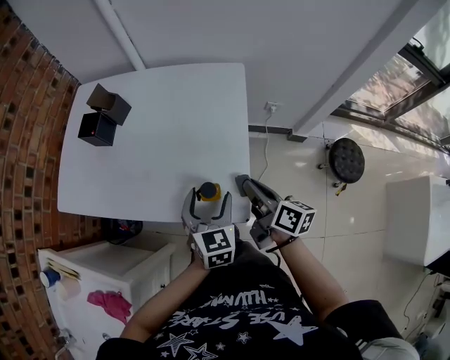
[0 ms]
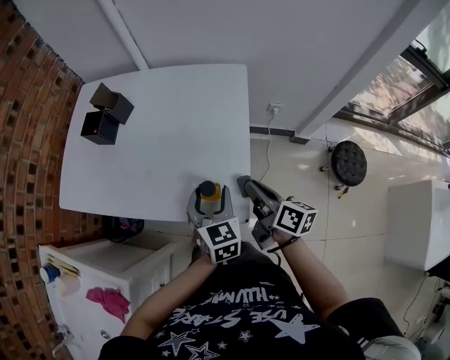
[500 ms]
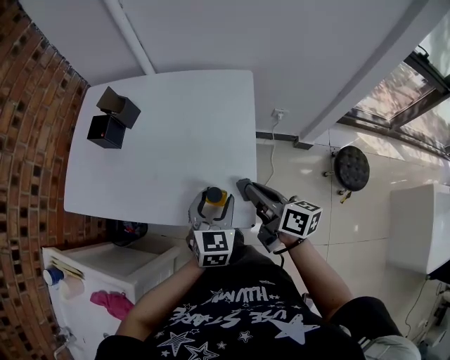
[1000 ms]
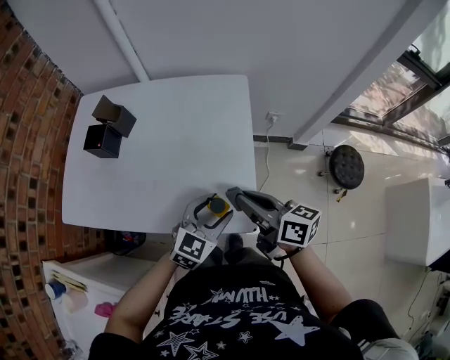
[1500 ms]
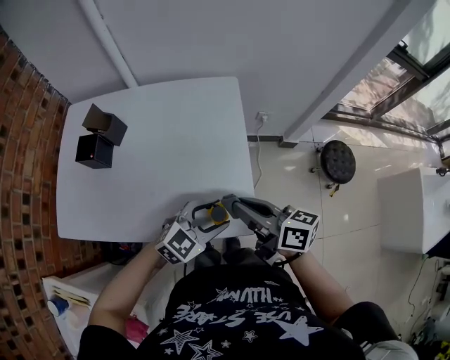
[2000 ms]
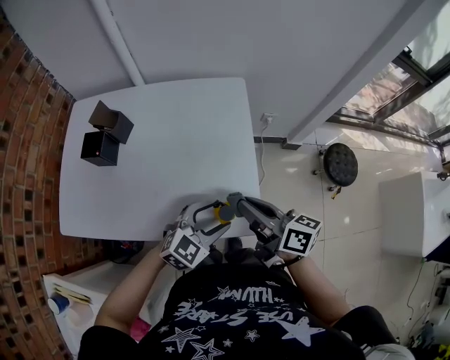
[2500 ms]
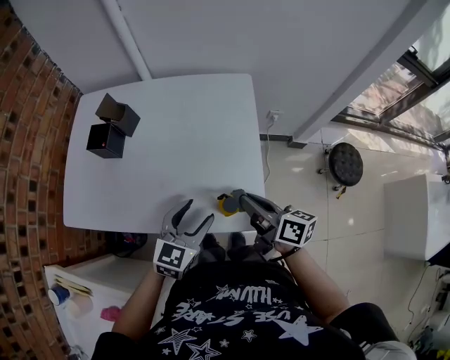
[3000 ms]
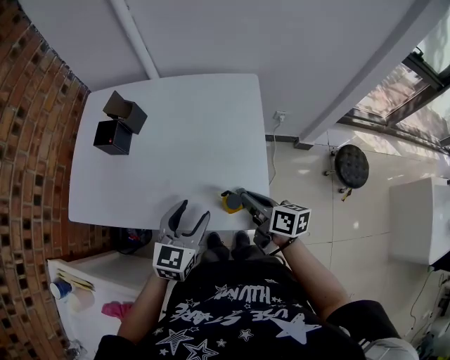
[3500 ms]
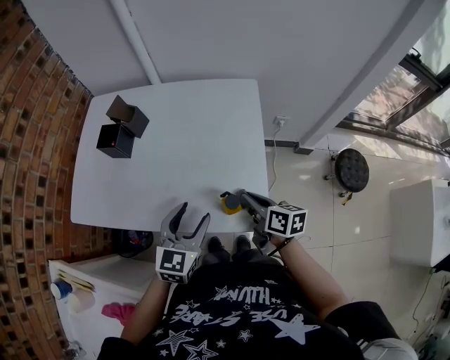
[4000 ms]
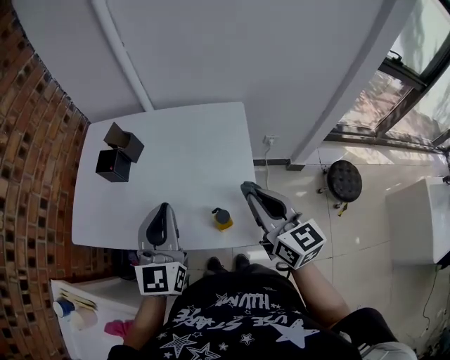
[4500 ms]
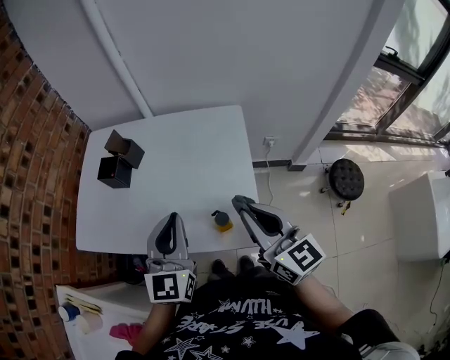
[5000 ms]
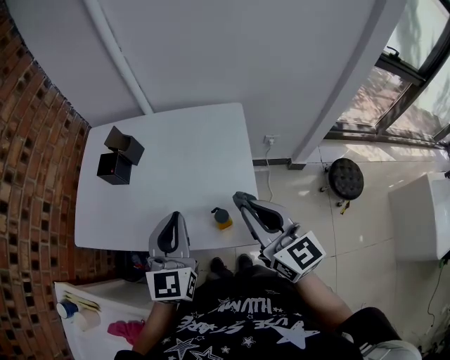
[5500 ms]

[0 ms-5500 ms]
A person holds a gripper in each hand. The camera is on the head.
0 ms to 2000 ms: The right gripper moves upward, about 5 cm. The left gripper changes its angle by approximately 60 degrees.
2000 ms to 3500 ms: The left gripper moves to the left, approximately 10 cm, and changes its angle by roughly 40 degrees, while the right gripper heads downward, covering about 10 cm.
3500 ms to 5500 ms: The grippers both shift upward by about 15 cm. The left gripper turns by some 20 degrees, and closes. Meanwhile the right gripper rolls counterclockwise, seen from behind, by approximately 40 degrees.

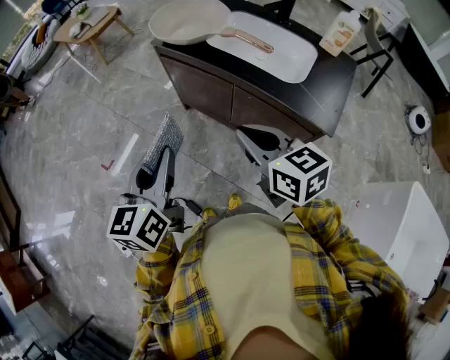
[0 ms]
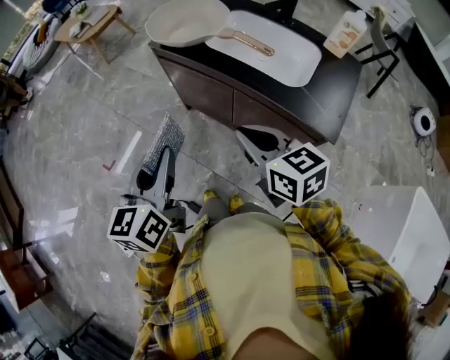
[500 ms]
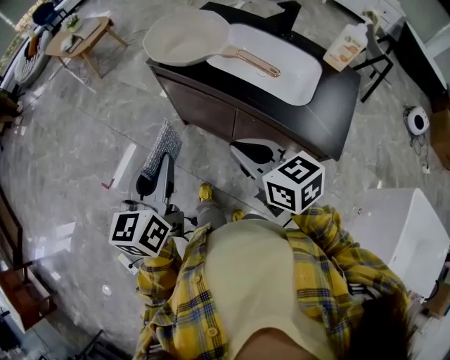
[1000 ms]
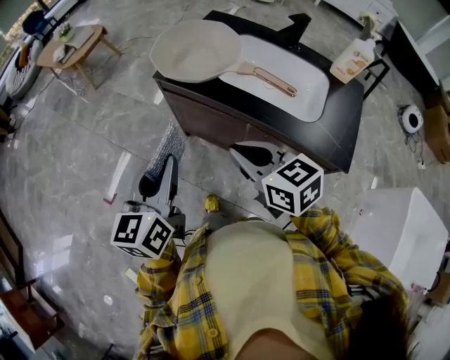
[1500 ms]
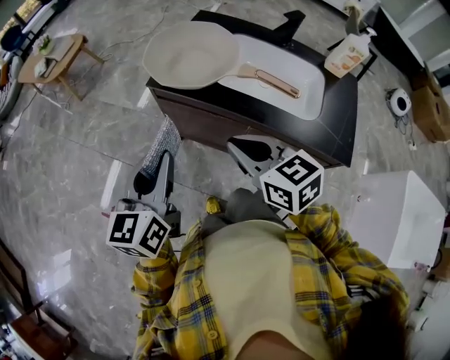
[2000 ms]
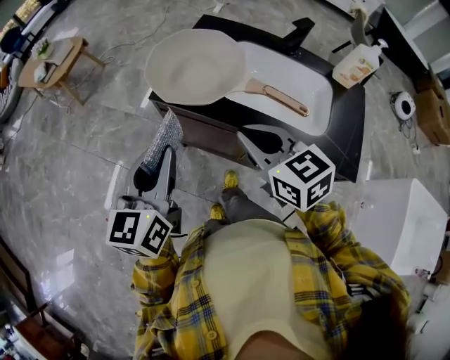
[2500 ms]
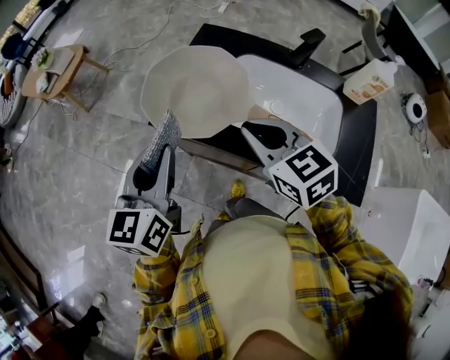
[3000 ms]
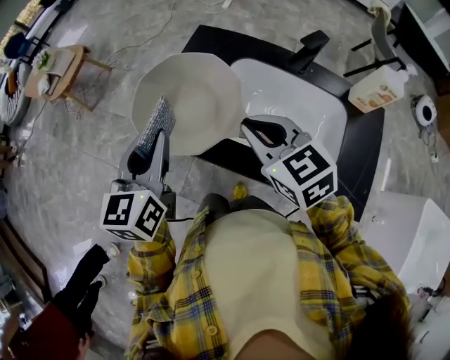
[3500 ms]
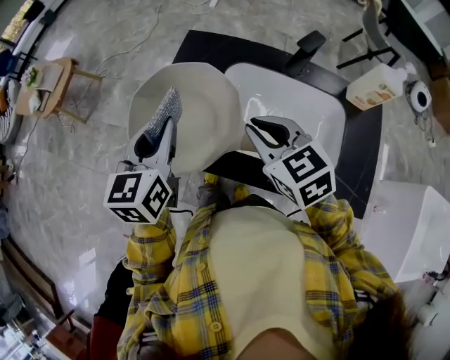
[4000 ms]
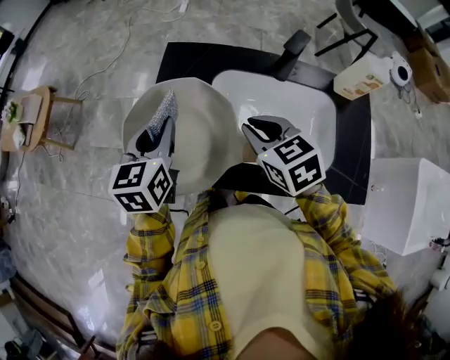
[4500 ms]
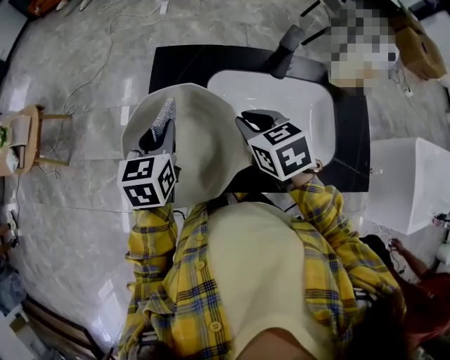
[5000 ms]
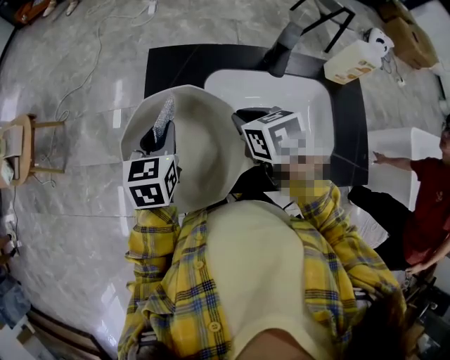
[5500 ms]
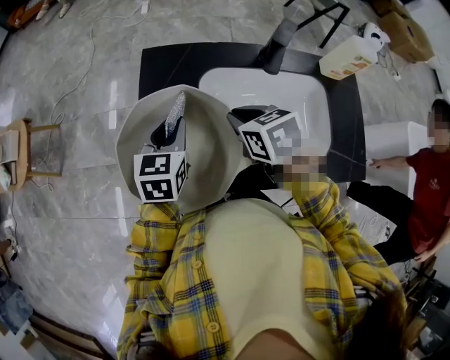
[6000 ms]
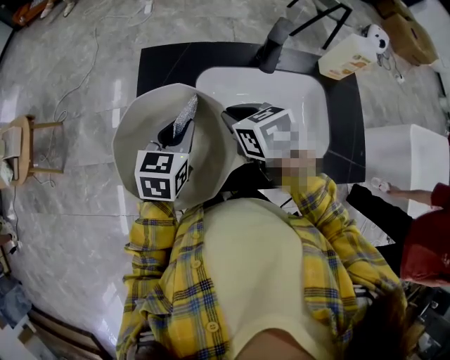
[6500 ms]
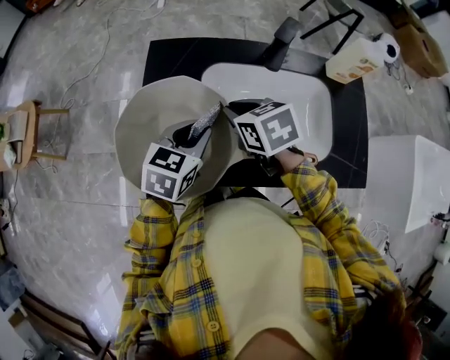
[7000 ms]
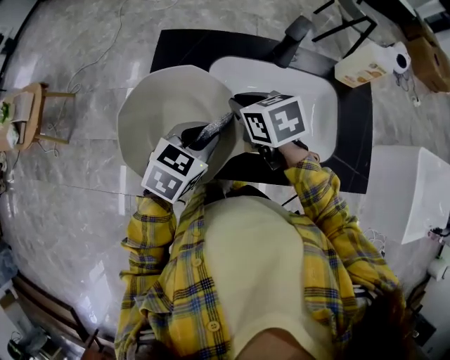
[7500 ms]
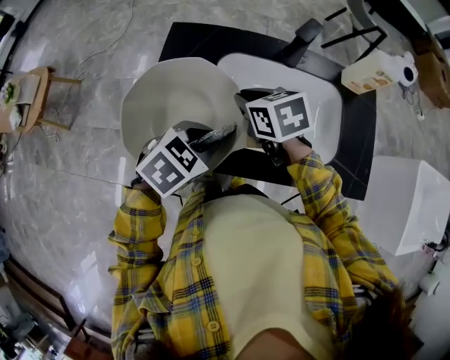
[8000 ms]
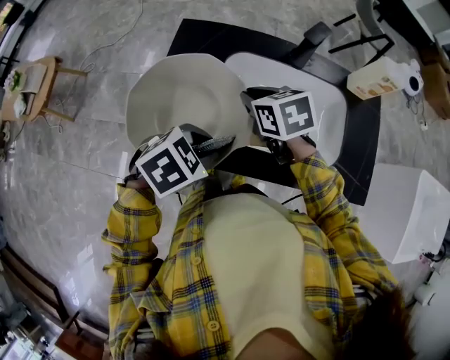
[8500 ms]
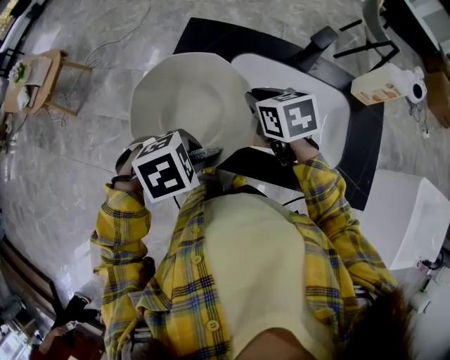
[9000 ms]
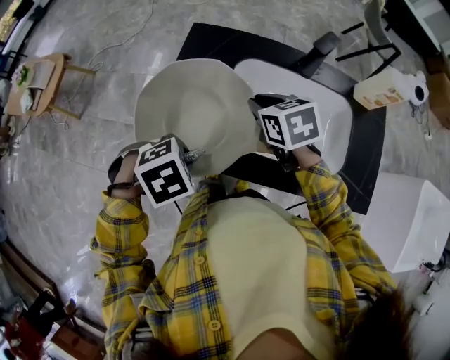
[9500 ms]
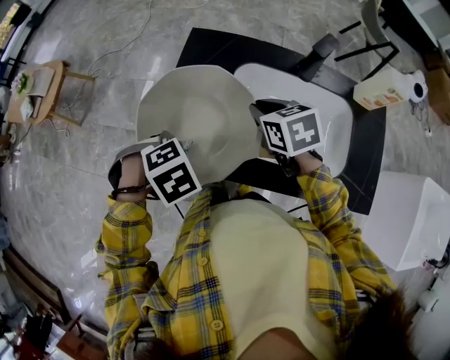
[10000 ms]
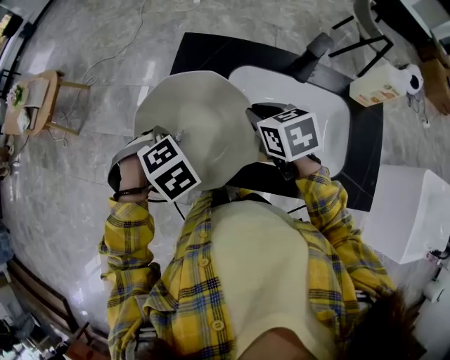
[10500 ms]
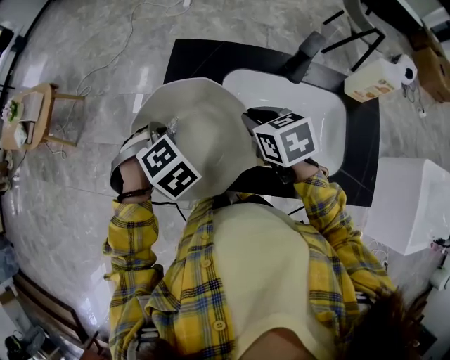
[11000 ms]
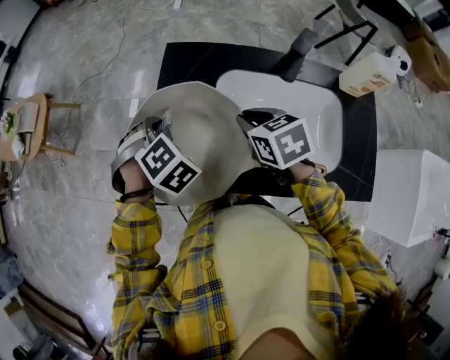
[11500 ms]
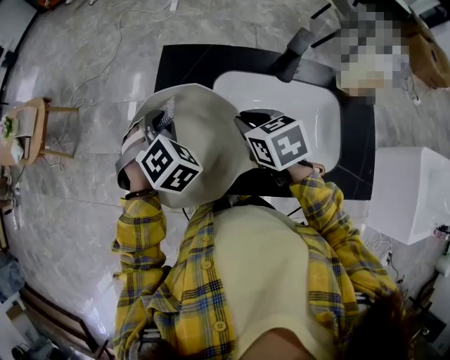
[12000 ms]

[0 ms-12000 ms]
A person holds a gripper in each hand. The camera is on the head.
0 ms to 2000 ms: The grippers both shift forward by approximately 20 cm.
2000 ms to 4000 ms: The left gripper goes approximately 30 cm forward, while the right gripper shifts some 25 cm forward and to the right.
4000 ms to 6000 ms: The left gripper travels downward and forward by about 15 cm, and swivels approximately 30 degrees, while the right gripper goes approximately 10 cm forward and downward, and rotates about 30 degrees.
6000 ms to 8000 ms: The left gripper travels backward and to the right by roughly 15 cm, and swivels some 40 degrees.
8000 ms to 10000 ms: The left gripper shifts by roughly 10 cm, and tips its fingers downward by about 30 degrees.
10000 ms to 12000 ms: The left gripper moves roughly 15 cm, and points its fingers some 30 degrees further upward.

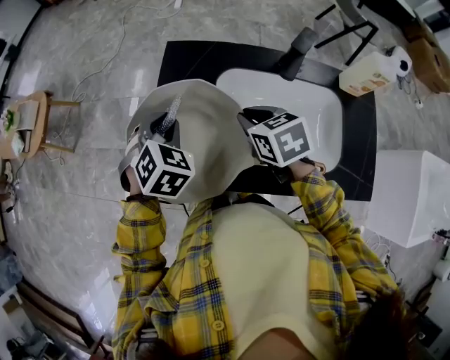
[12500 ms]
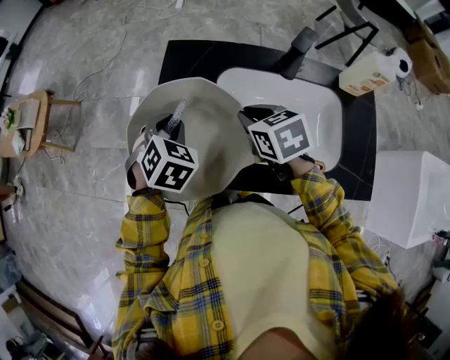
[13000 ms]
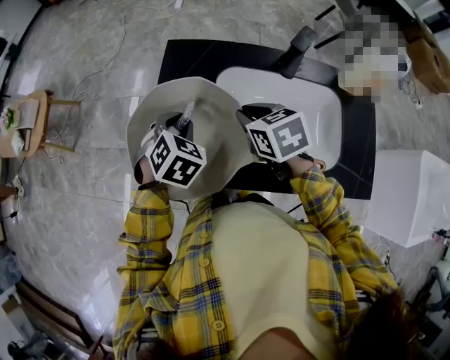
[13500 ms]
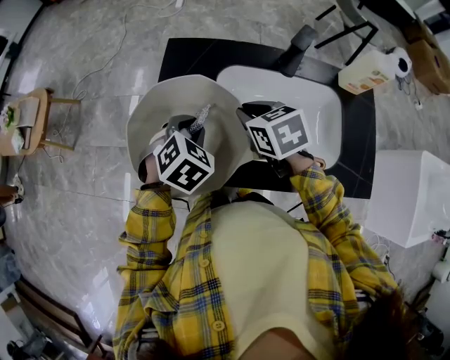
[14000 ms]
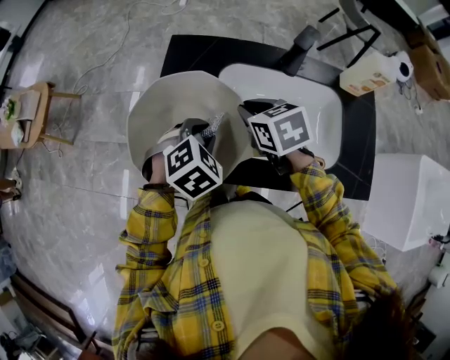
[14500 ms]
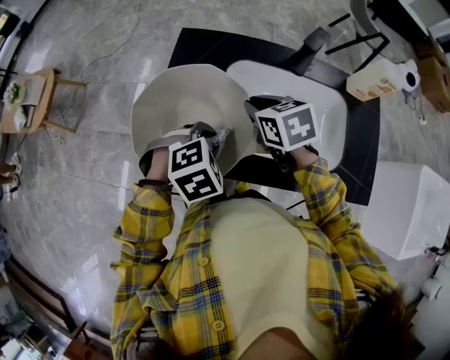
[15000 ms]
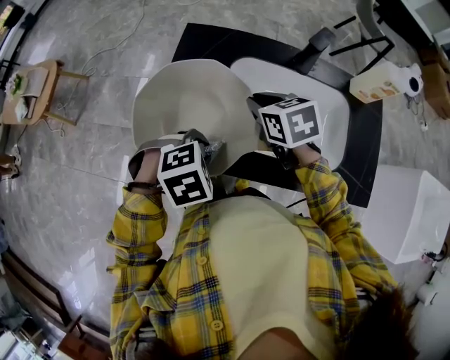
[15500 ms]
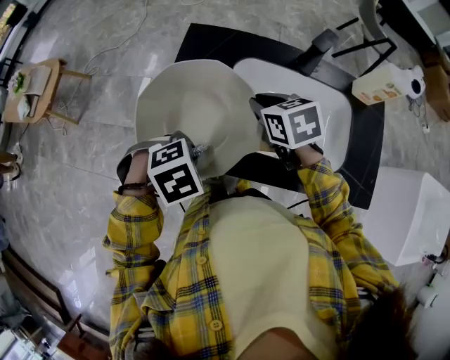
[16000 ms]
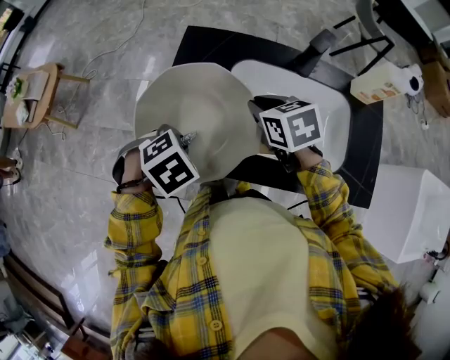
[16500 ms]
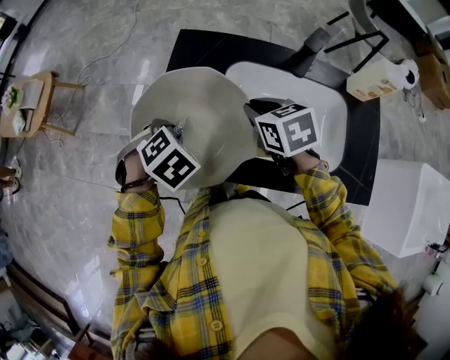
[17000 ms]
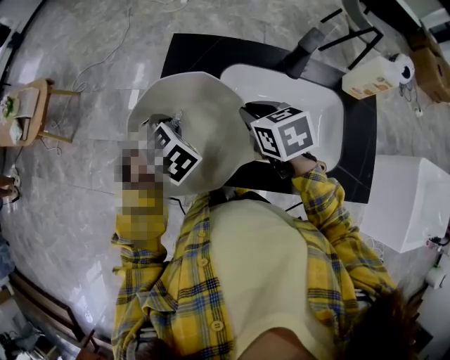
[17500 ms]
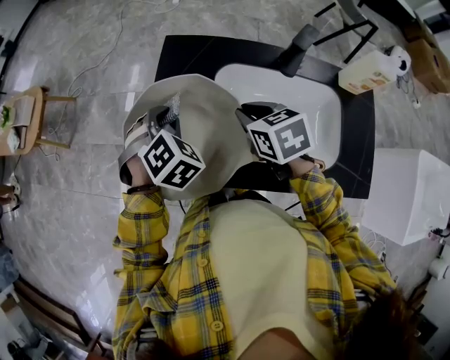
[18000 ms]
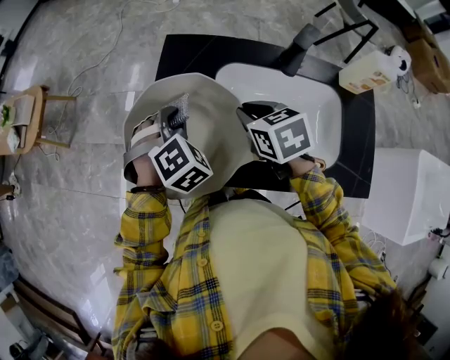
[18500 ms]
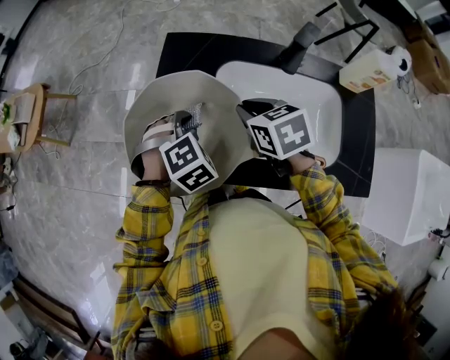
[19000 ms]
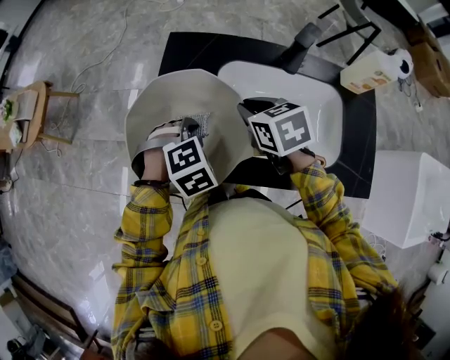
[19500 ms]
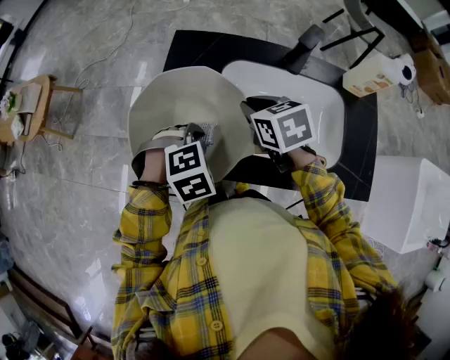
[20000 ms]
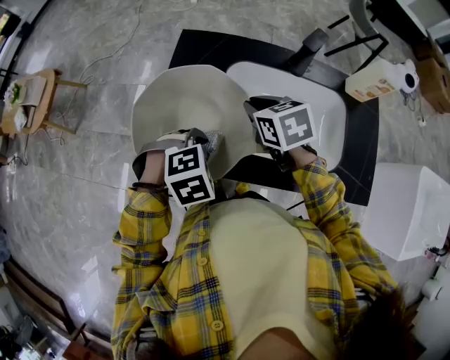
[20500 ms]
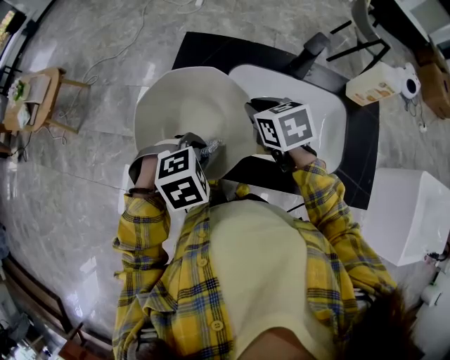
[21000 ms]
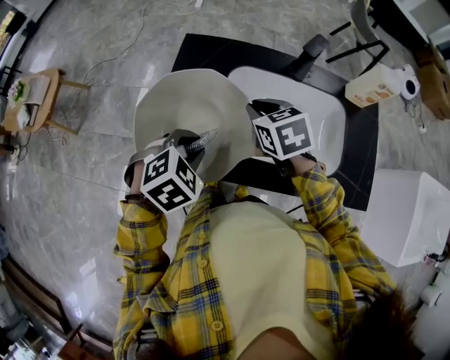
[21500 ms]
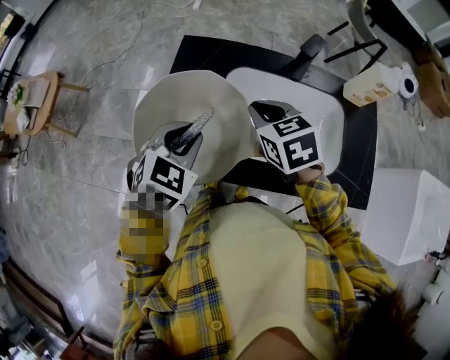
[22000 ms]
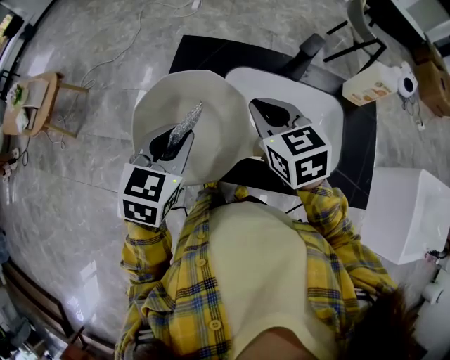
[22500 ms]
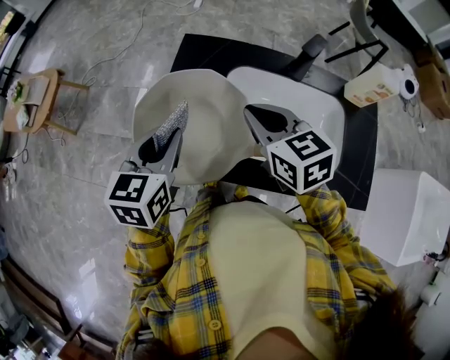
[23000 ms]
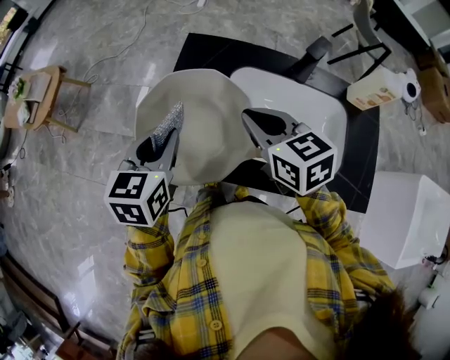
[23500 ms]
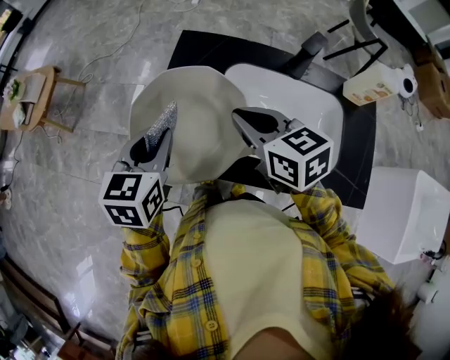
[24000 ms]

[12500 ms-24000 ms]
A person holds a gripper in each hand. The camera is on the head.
12500 ms to 14500 ms: The left gripper heads backward and to the right, covering about 10 cm, and rotates approximately 20 degrees.
14500 ms to 16500 ms: The left gripper ends up about 10 cm from where it was, and swivels roughly 20 degrees.
16500 ms to 18500 ms: The left gripper changes place by about 10 cm, and rotates about 30 degrees.
18500 ms to 20000 ms: The left gripper goes approximately 10 cm backward, and swivels approximately 30 degrees.
20000 ms to 22000 ms: The left gripper moves upward, roughly 10 cm, and rotates roughly 40 degrees.
22000 ms to 24000 ms: The left gripper is displaced to the left by roughly 5 cm, and swivels roughly 40 degrees, while the right gripper changes place by some 5 cm, and turns by about 20 degrees.
